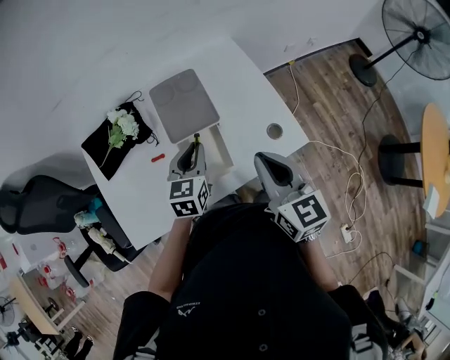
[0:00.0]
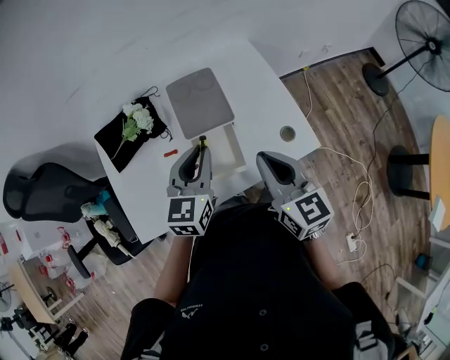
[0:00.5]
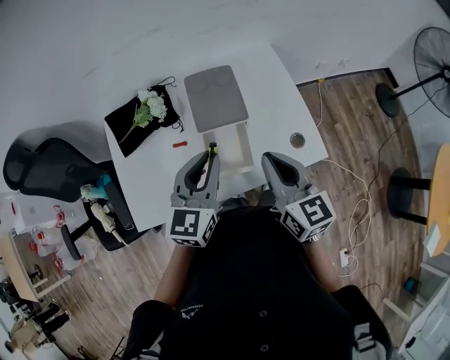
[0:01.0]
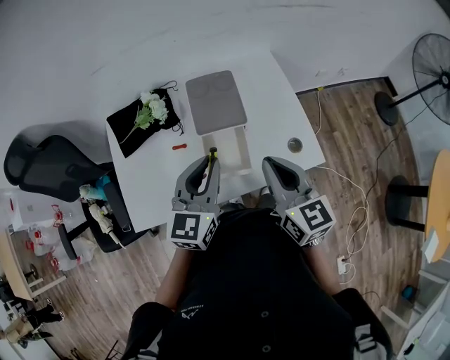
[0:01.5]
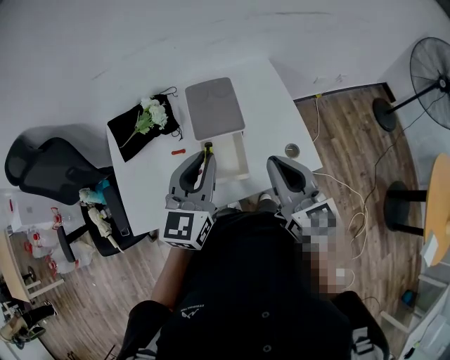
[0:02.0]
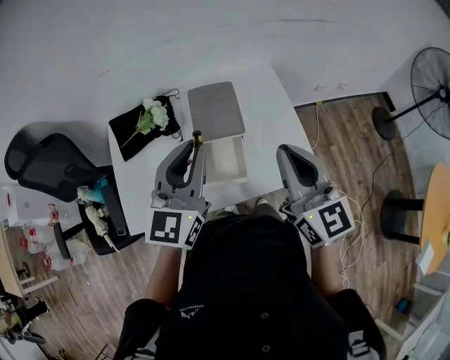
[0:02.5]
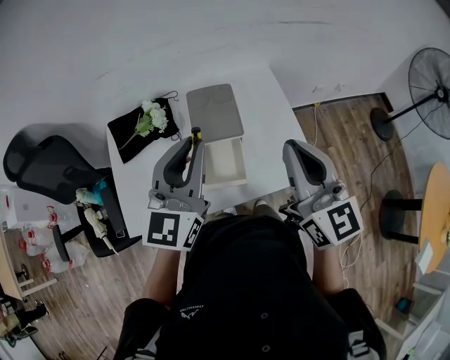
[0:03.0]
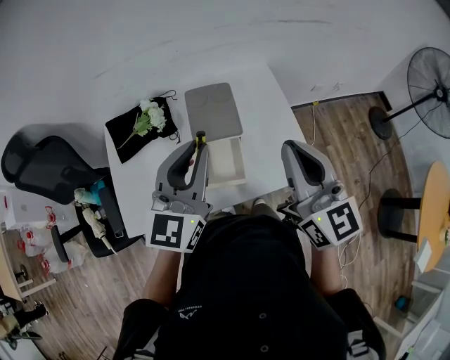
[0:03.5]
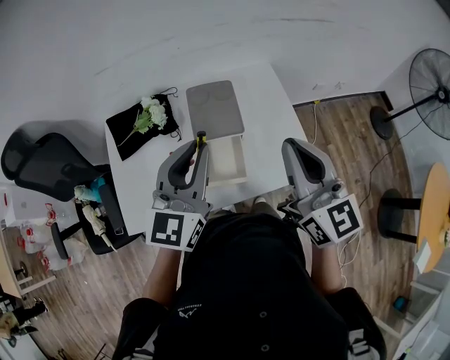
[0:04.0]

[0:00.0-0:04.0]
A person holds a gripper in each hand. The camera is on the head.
0:00.0 to 0:02.0: The right gripper moves some 5 cm. The left gripper shifts approximately 15 cm upward and backward, and swivels about 20 degrees.
0:02.0 to 0:04.0: The two grippers go some 5 cm upward.

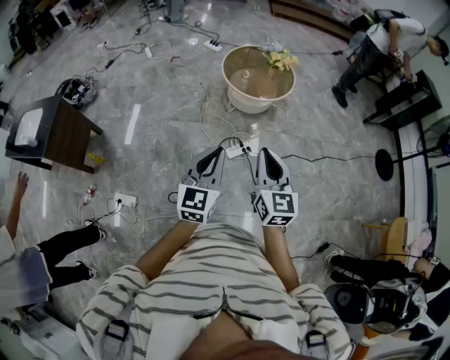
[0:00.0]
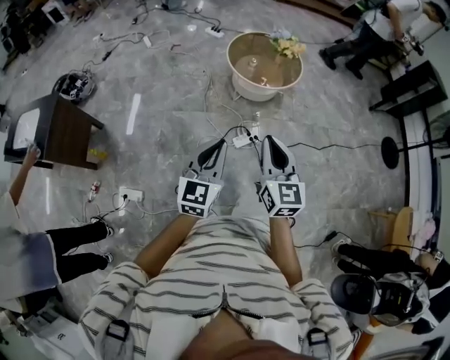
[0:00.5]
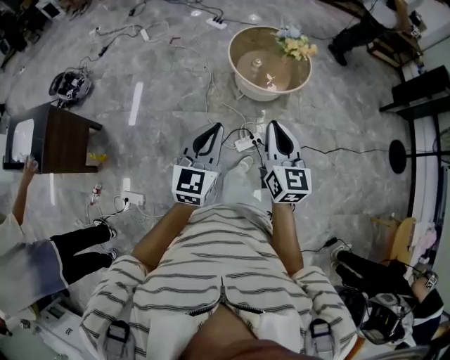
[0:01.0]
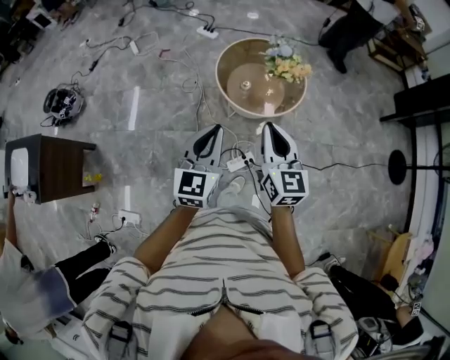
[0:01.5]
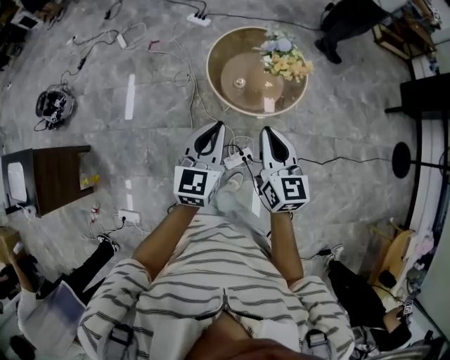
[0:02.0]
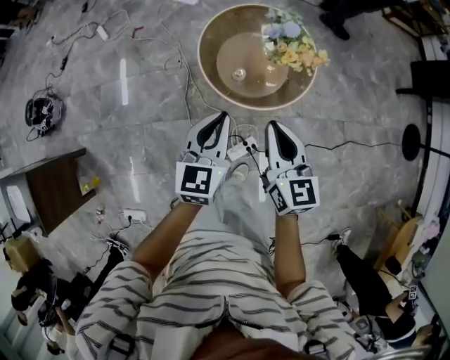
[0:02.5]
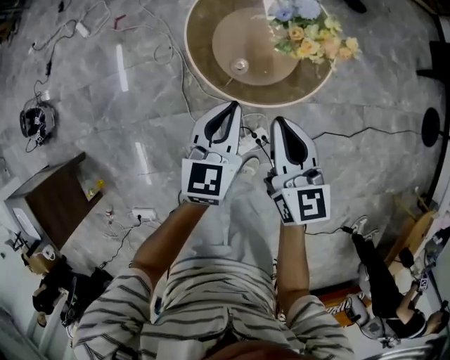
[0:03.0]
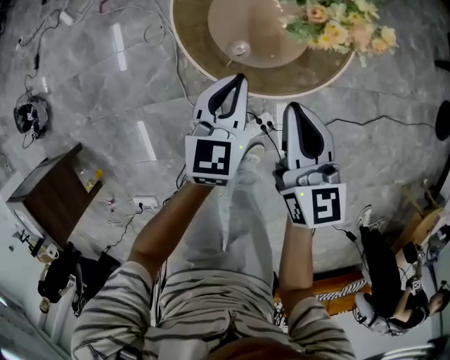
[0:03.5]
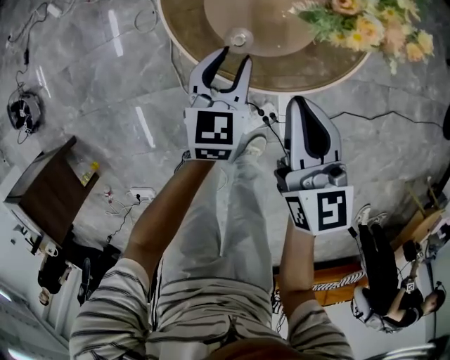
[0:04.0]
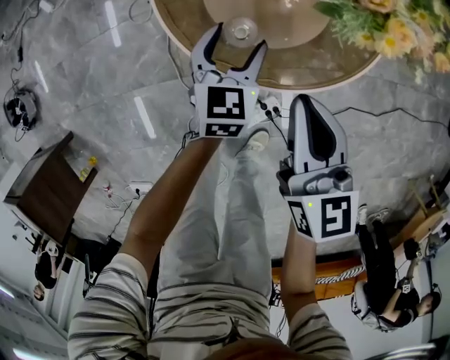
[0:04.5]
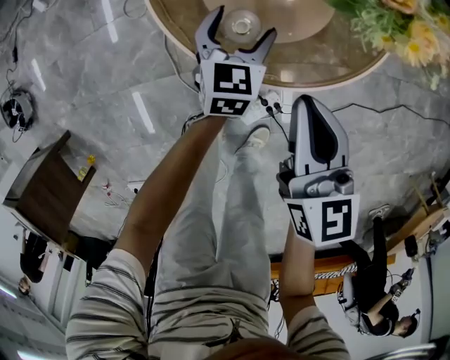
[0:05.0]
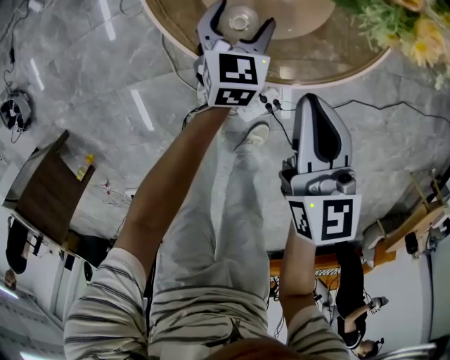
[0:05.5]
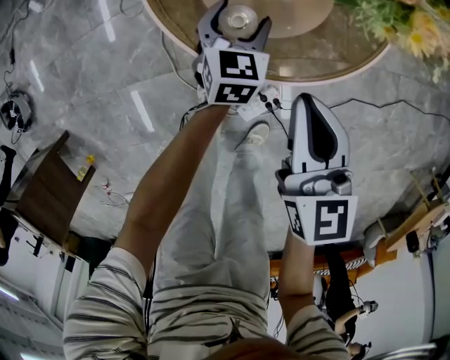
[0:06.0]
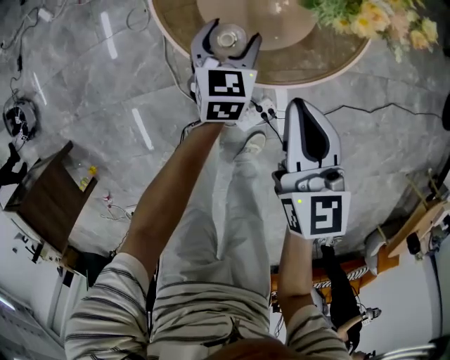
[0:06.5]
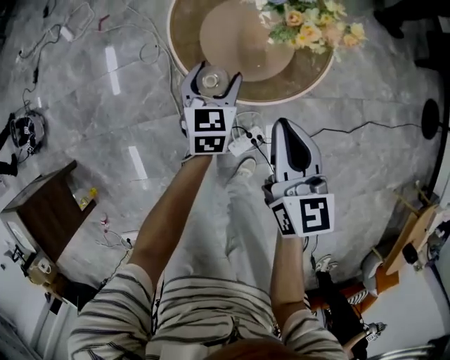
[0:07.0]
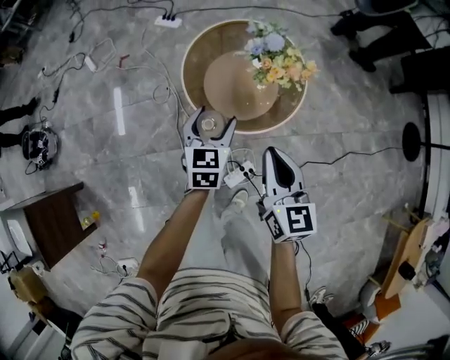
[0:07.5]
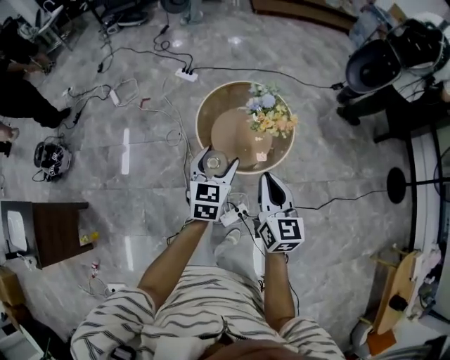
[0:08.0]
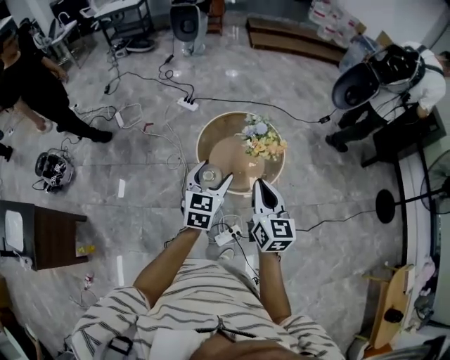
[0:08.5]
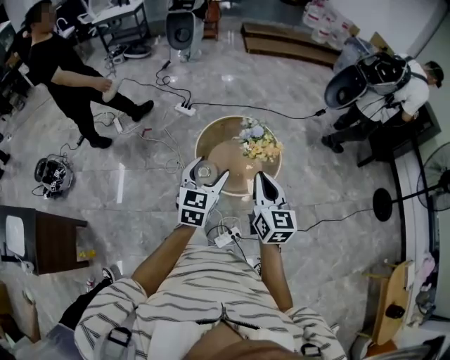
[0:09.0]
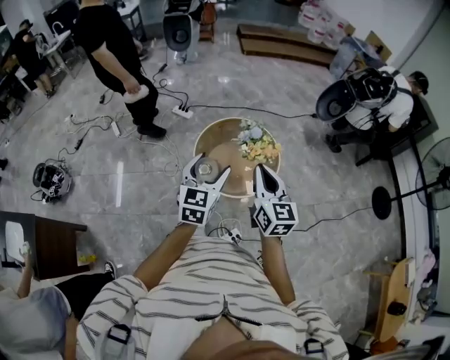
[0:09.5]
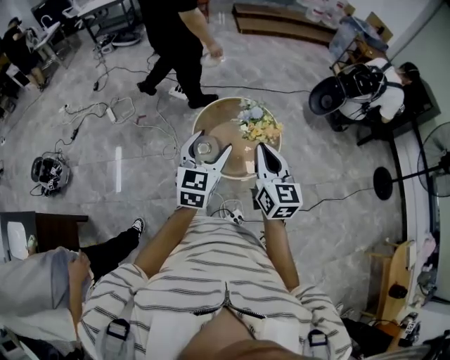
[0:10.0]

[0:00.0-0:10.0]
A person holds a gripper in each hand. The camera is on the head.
0:00.0 to 0:02.0: The two grippers travel together, forward, about 50 cm.
0:02.0 to 0:04.0: Both grippers move downward and forward, roughly 50 cm. The left gripper rotates about 20 degrees.
0:04.0 to 0:06.0: The left gripper travels downward by roughly 10 cm, and opens; the right gripper shifts roughly 5 cm downward.
0:06.0 to 0:08.0: Both grippers move upward, some 40 cm.
0:08.0 to 0:10.0: The grippers both shift upward by some 15 cm.

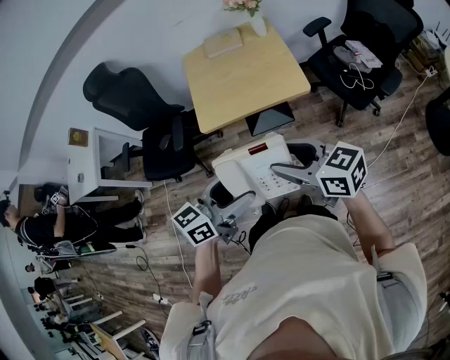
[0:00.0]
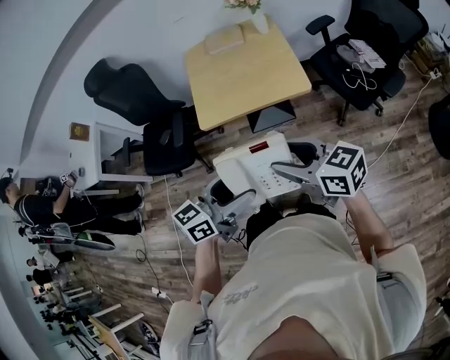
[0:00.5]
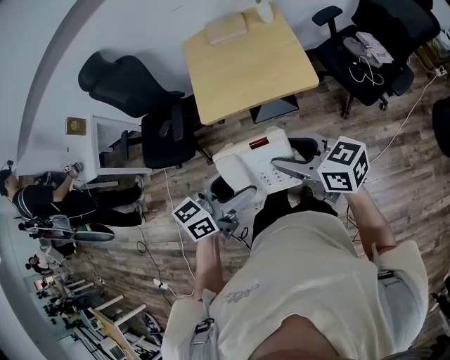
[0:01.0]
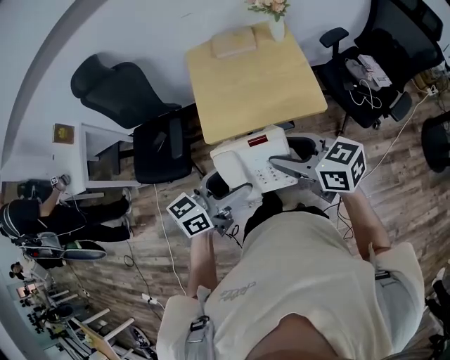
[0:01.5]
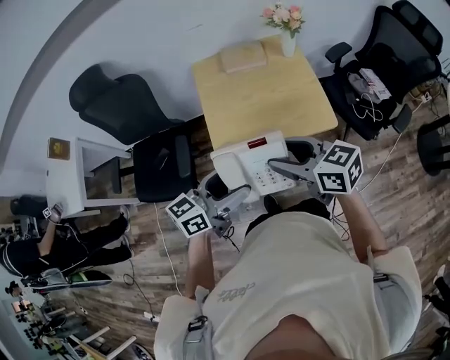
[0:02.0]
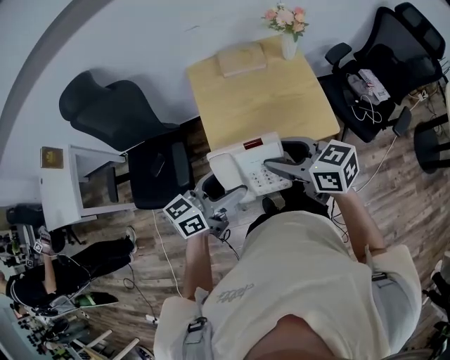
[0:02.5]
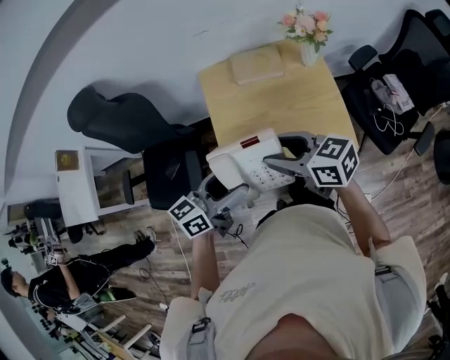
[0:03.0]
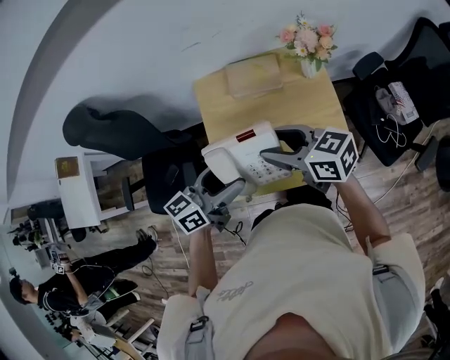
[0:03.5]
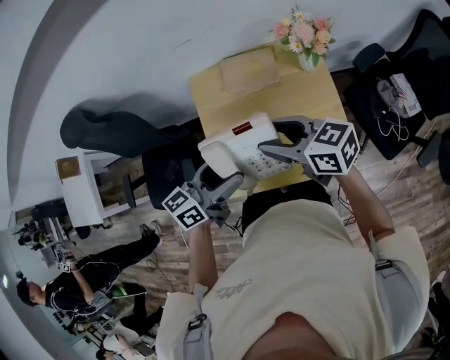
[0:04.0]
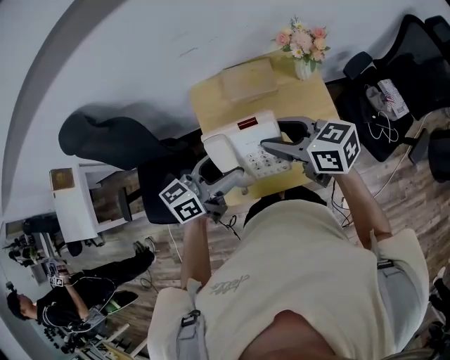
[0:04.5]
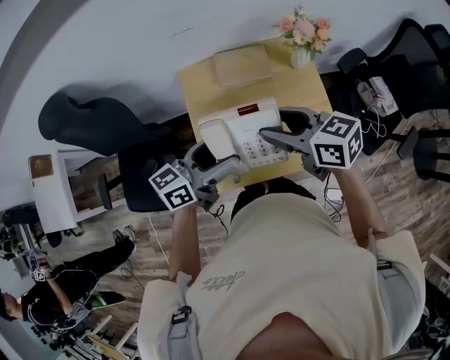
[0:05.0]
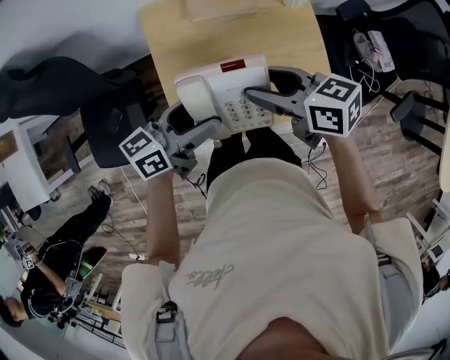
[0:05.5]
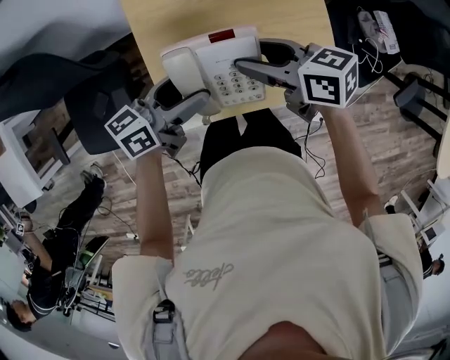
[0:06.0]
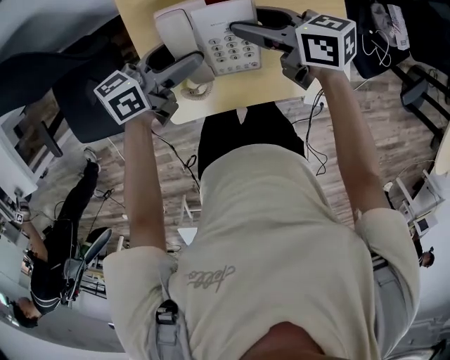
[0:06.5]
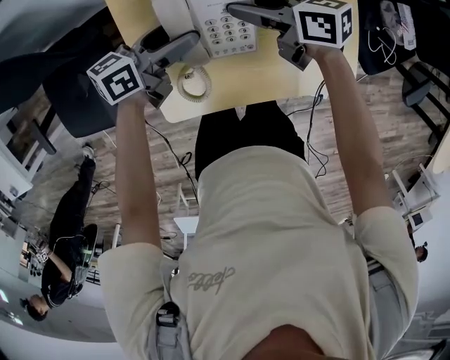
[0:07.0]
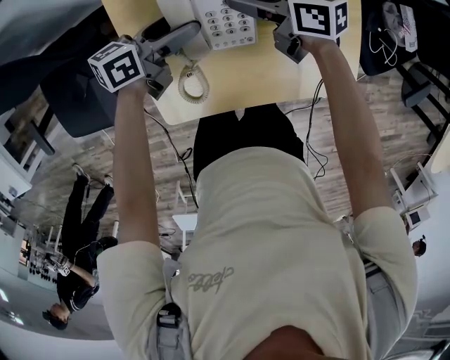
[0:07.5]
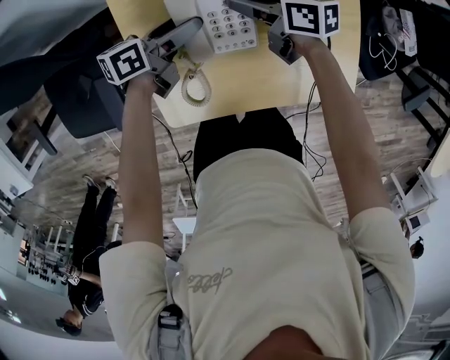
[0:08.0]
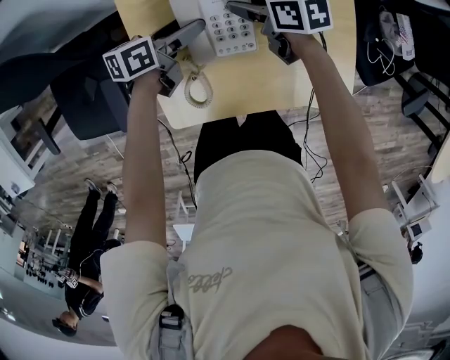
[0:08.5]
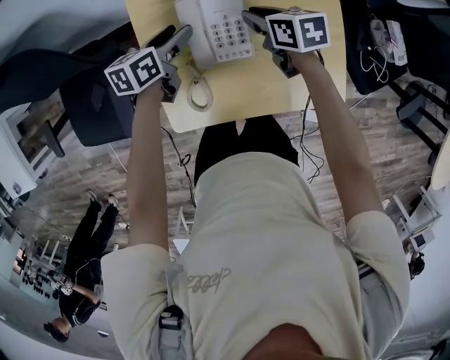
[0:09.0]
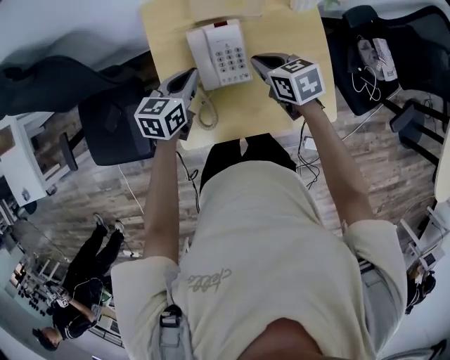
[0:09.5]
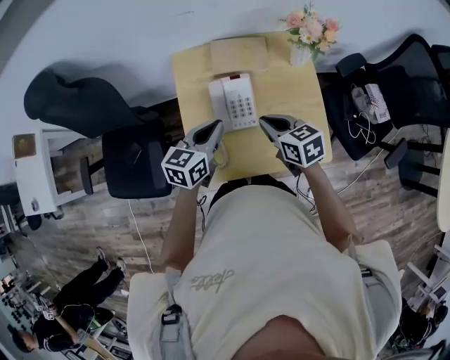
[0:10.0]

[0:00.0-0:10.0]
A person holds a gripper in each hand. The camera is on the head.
0:00.0 to 0:02.0: The two grippers go some 30 cm forward and to the left.
0:02.0 to 0:04.0: Both grippers travel together forward, roughly 30 cm.
0:04.0 to 0:06.0: Both grippers travel together downward, some 15 cm.
0:06.0 to 0:08.0: The grippers both shift downward by approximately 20 cm.
0:08.0 to 0:10.0: Both grippers travel together upward and backward, some 25 cm. The right gripper turns by some 30 degrees, and closes up. The left gripper turns by approximately 40 degrees, and closes.

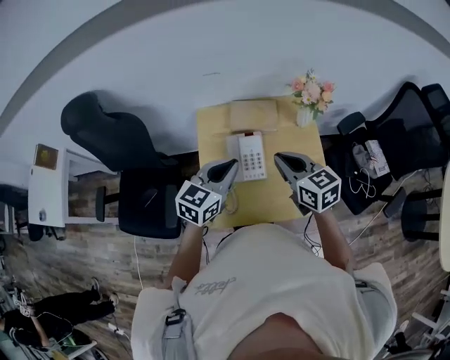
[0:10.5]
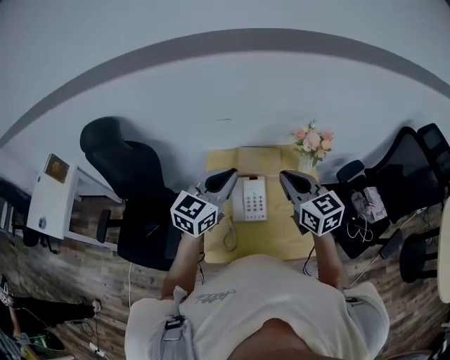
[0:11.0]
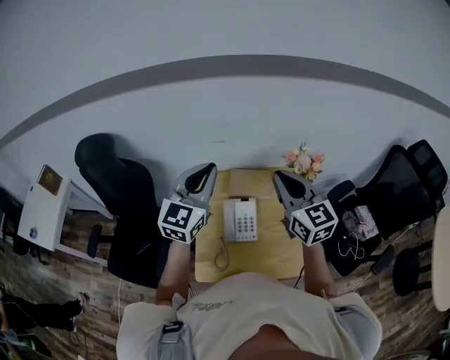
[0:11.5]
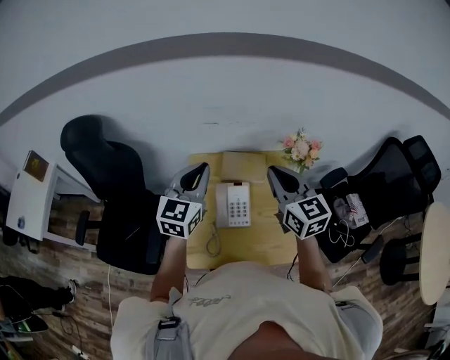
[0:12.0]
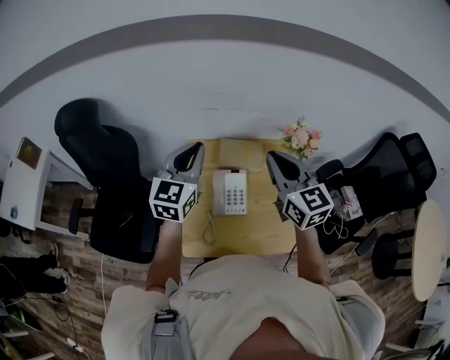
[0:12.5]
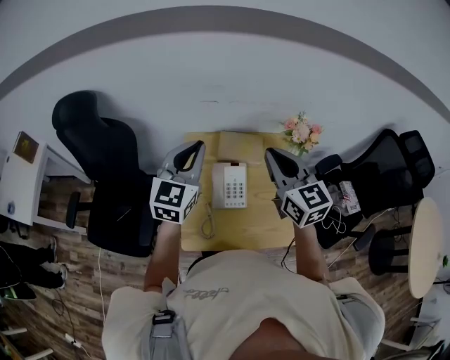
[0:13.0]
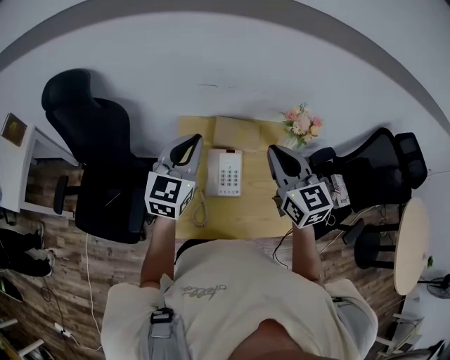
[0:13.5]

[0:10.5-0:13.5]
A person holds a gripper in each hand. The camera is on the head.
0:10.5 to 0:12.0: The right gripper shifts approximately 15 cm upward and forward, and rotates some 20 degrees, while the left gripper travels upward, forward and to the left by some 15 cm, and rotates about 30 degrees.
0:12.0 to 0:13.5: The grippers make only small movements.
